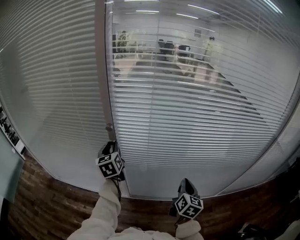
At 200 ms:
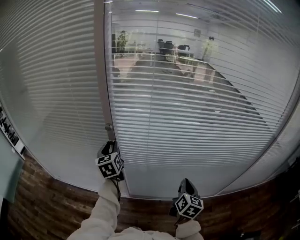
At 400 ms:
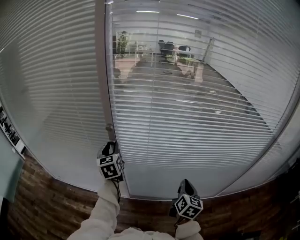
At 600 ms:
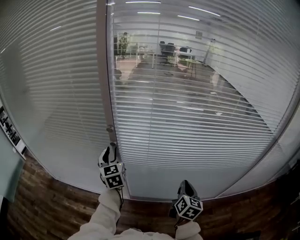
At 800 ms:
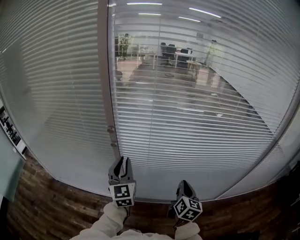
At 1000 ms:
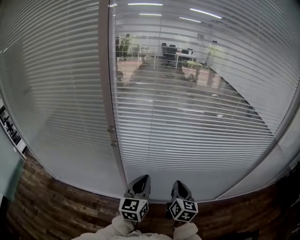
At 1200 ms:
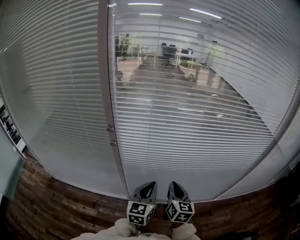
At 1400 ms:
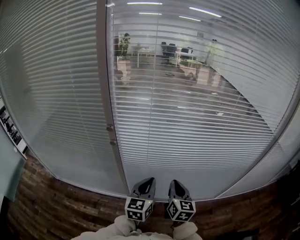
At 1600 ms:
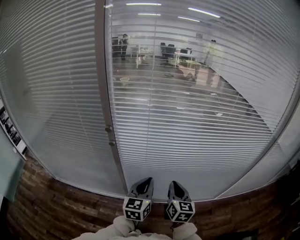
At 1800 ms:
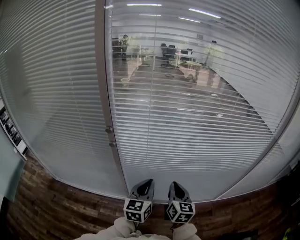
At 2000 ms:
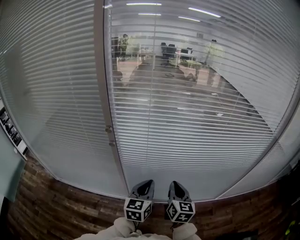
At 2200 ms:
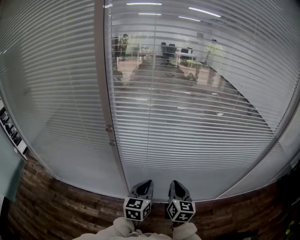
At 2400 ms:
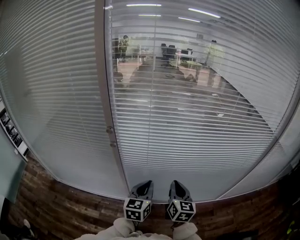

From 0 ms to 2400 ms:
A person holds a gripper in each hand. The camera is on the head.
From 0 ms to 1200 ms: The right gripper heads to the left, covering approximately 5 cm. The left gripper travels to the right and backward by about 25 cm, rotates approximately 30 degrees, and closes its fingers.
From 1200 ms to 2400 ms: The grippers make only small movements.

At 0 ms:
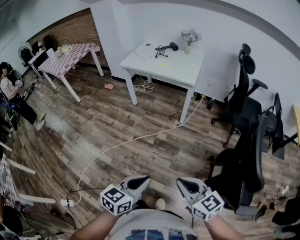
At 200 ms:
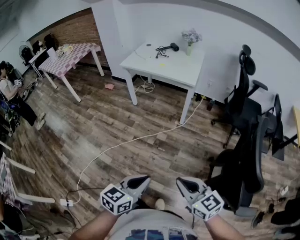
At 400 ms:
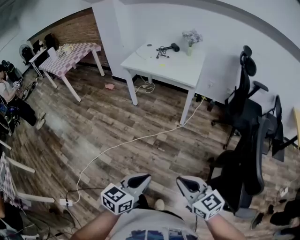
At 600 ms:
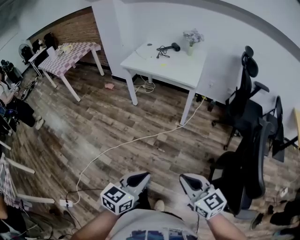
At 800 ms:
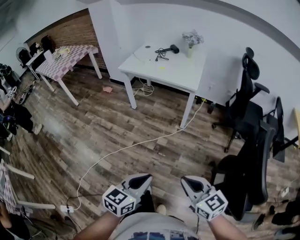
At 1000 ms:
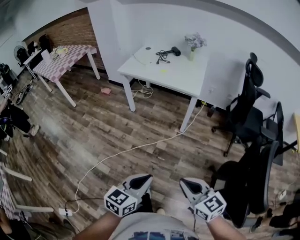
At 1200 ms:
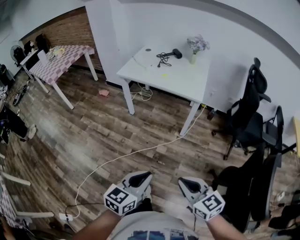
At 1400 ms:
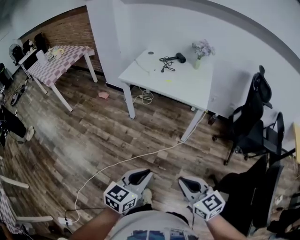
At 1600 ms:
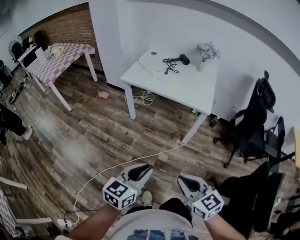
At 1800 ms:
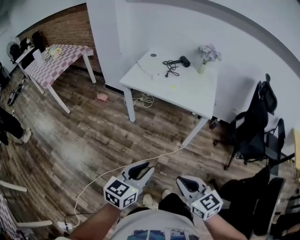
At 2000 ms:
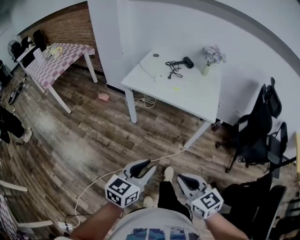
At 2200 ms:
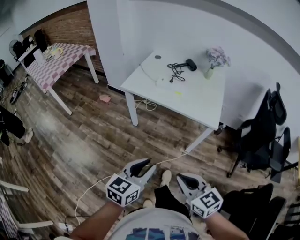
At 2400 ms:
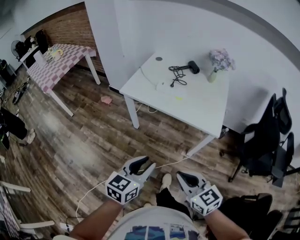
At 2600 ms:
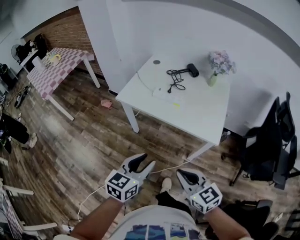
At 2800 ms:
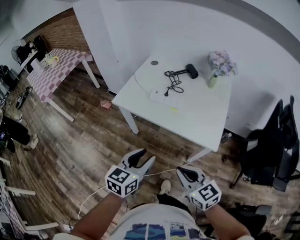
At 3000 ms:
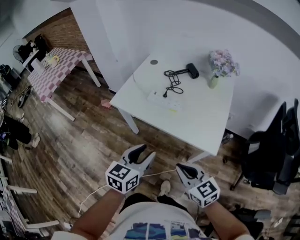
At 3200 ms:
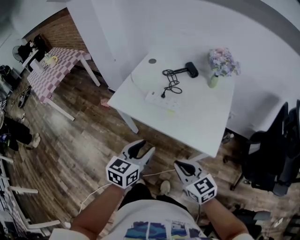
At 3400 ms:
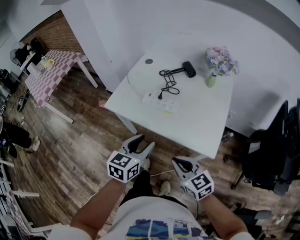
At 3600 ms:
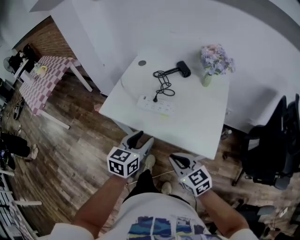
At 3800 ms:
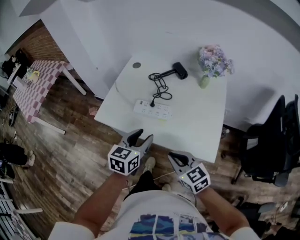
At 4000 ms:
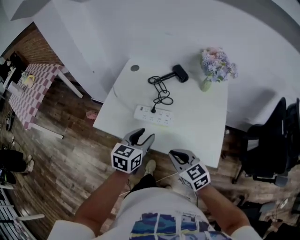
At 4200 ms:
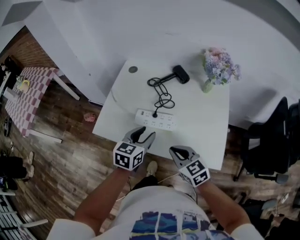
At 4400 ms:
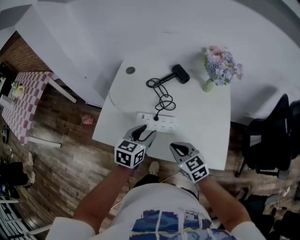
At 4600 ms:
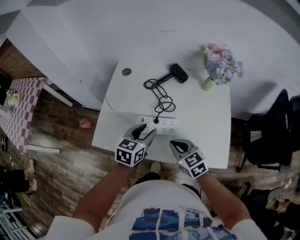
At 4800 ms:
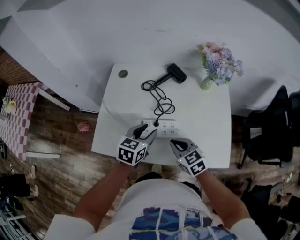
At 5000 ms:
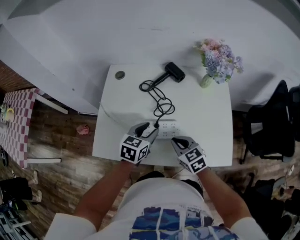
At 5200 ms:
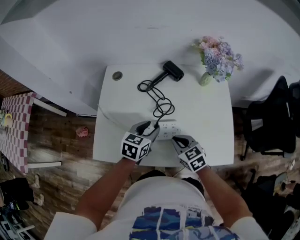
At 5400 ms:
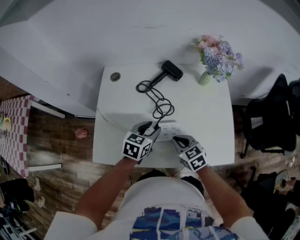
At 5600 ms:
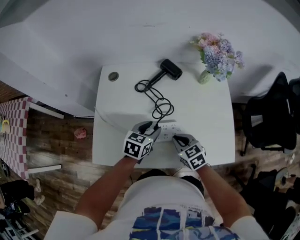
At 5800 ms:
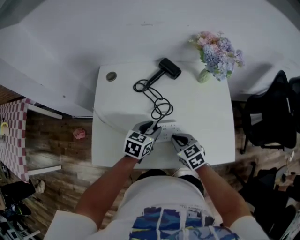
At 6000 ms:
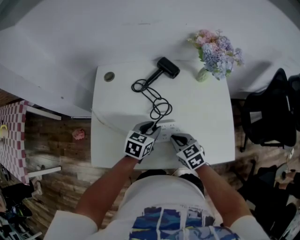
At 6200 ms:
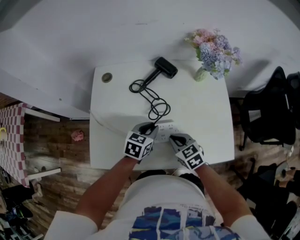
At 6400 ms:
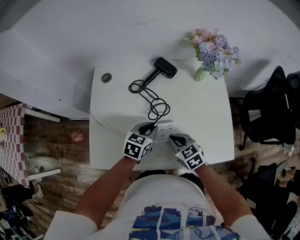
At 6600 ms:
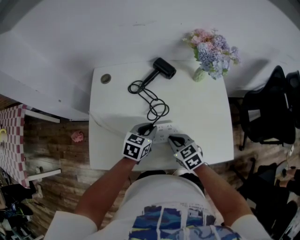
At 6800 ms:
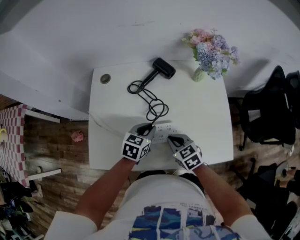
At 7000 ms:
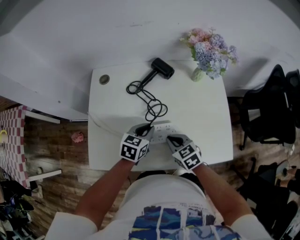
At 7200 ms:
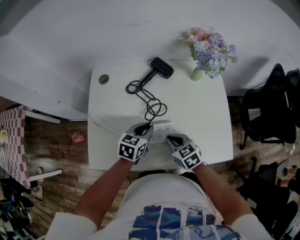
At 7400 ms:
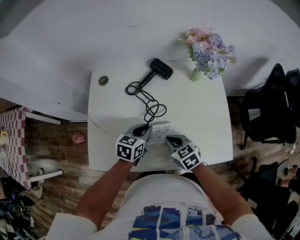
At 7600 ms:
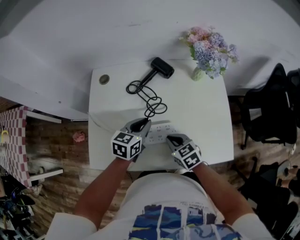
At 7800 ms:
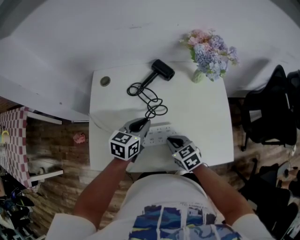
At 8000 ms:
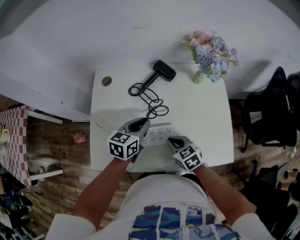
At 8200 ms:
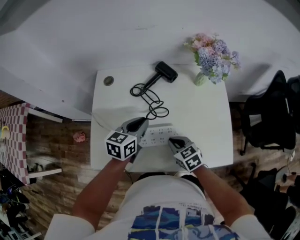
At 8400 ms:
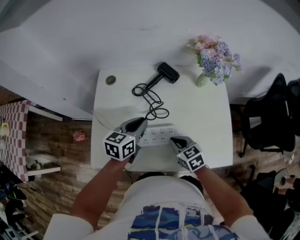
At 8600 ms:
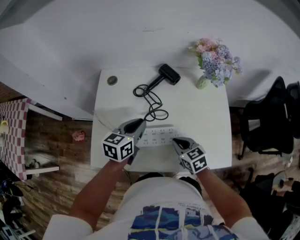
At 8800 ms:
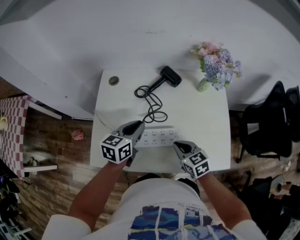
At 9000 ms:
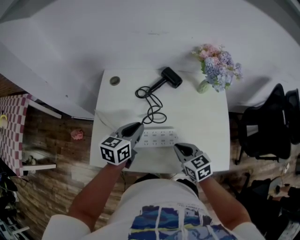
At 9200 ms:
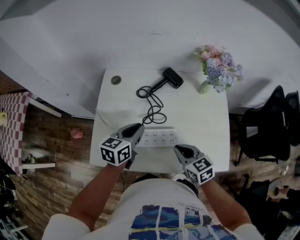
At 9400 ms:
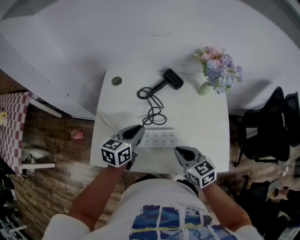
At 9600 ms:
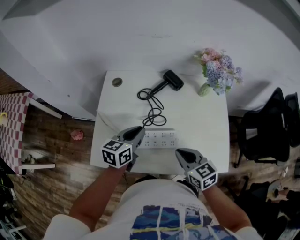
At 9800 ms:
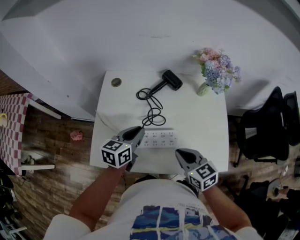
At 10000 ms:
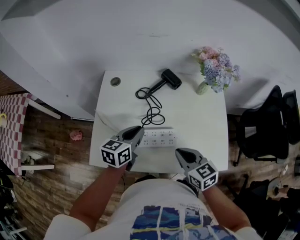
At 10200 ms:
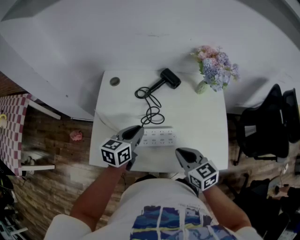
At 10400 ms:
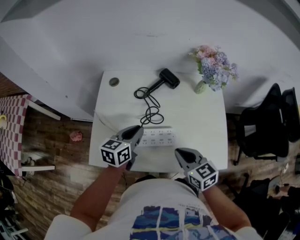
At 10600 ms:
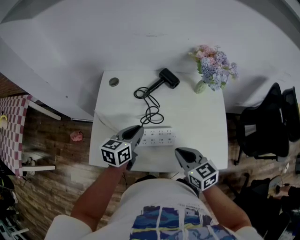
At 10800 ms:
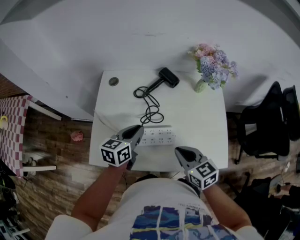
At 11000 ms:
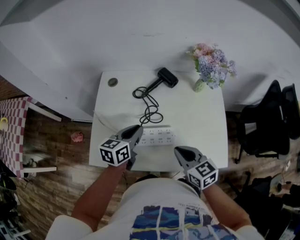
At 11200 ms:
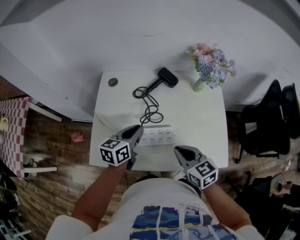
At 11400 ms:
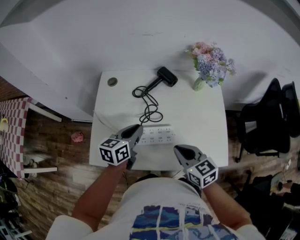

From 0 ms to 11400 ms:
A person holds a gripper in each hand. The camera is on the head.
From 0 ms to 1400 ms: The left gripper travels forward by roughly 25 cm. The right gripper shifts some 25 cm forward and to the left.
From 1400 ms to 2800 ms: The two grippers travel together, forward, approximately 40 cm. The left gripper opens its fingers.
From 2800 ms to 4200 ms: The two grippers go roughly 30 cm forward.
From 4200 ms to 5600 ms: Both grippers travel together forward and downward, approximately 15 cm. The left gripper swivels some 20 degrees.
From 5600 ms to 7200 ms: The left gripper closes.
From 7200 ms to 8600 ms: The left gripper goes some 10 cm upward and to the left.
From 8600 ms to 10000 ms: The right gripper moves upward, some 10 cm.
From 10000 ms to 11400 ms: Both grippers stay about where they are.

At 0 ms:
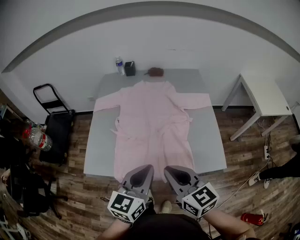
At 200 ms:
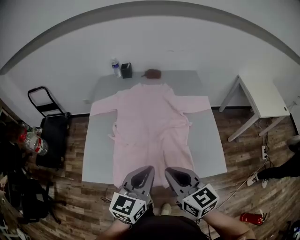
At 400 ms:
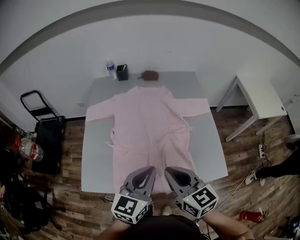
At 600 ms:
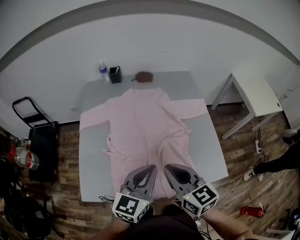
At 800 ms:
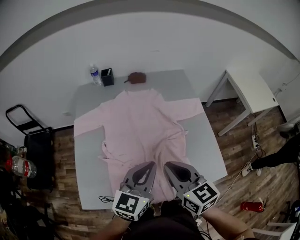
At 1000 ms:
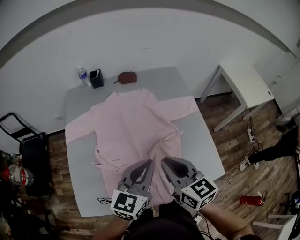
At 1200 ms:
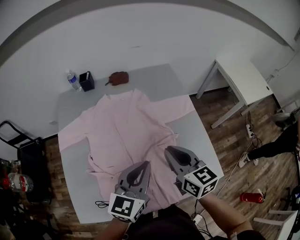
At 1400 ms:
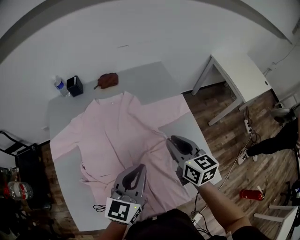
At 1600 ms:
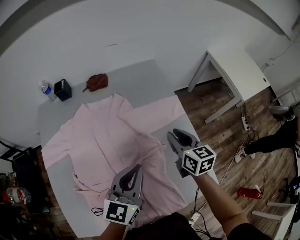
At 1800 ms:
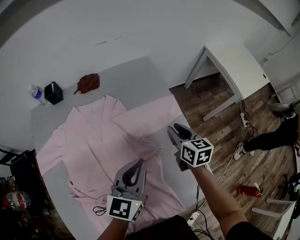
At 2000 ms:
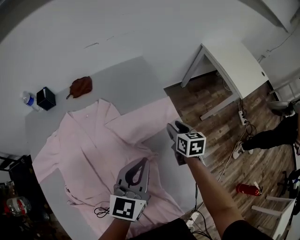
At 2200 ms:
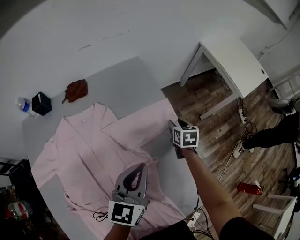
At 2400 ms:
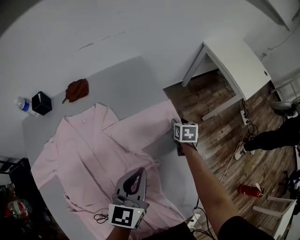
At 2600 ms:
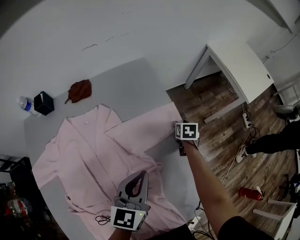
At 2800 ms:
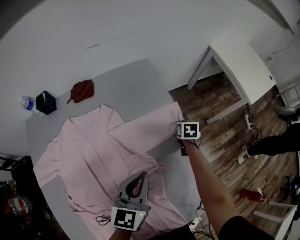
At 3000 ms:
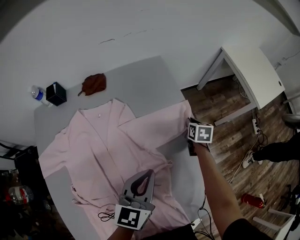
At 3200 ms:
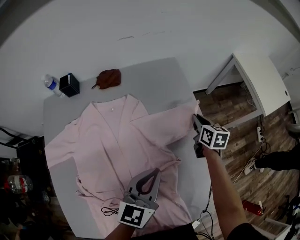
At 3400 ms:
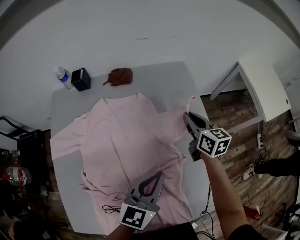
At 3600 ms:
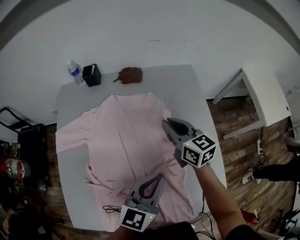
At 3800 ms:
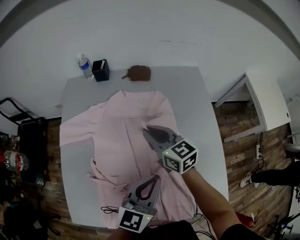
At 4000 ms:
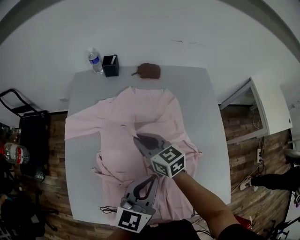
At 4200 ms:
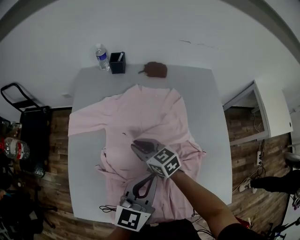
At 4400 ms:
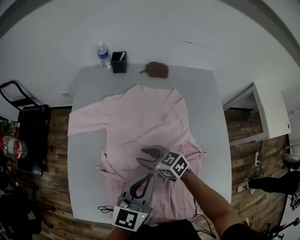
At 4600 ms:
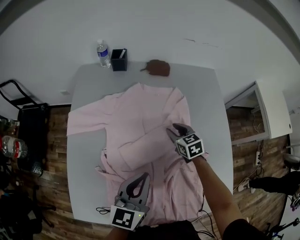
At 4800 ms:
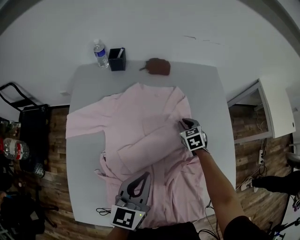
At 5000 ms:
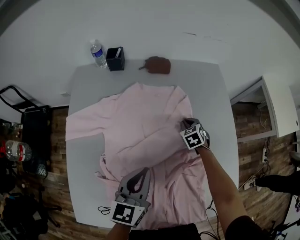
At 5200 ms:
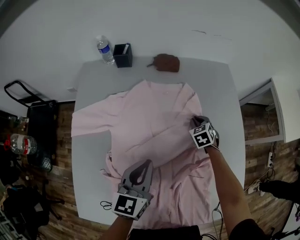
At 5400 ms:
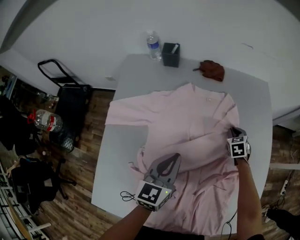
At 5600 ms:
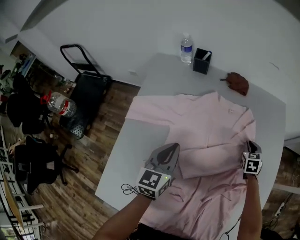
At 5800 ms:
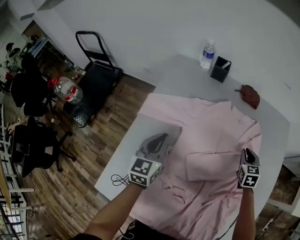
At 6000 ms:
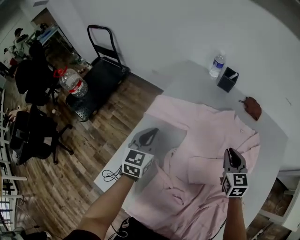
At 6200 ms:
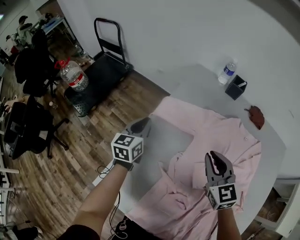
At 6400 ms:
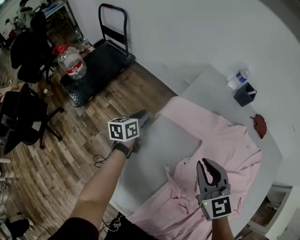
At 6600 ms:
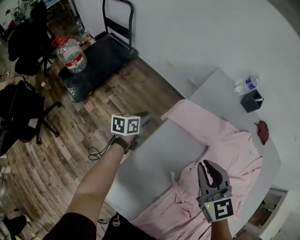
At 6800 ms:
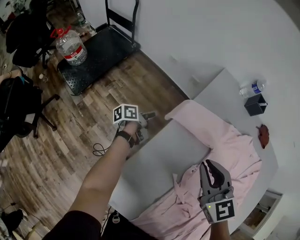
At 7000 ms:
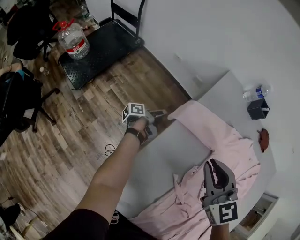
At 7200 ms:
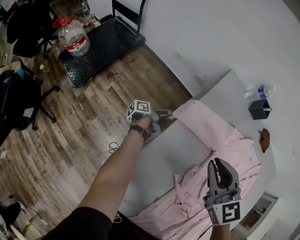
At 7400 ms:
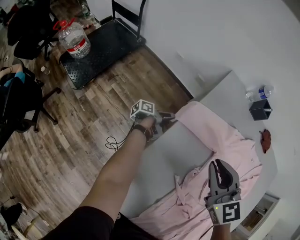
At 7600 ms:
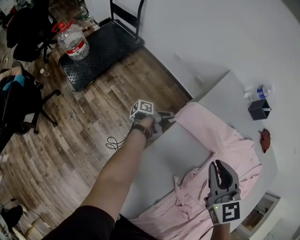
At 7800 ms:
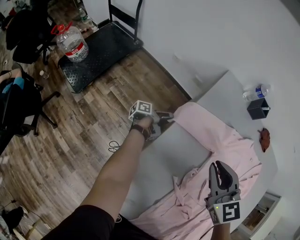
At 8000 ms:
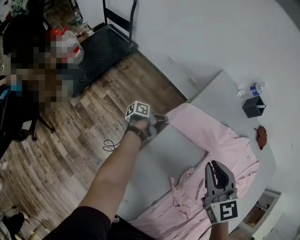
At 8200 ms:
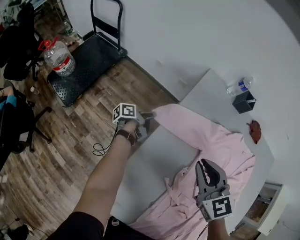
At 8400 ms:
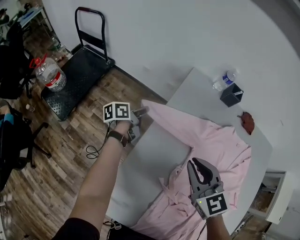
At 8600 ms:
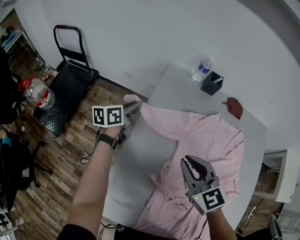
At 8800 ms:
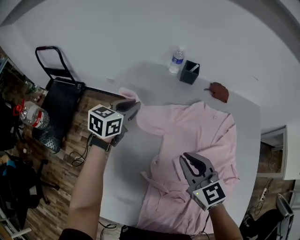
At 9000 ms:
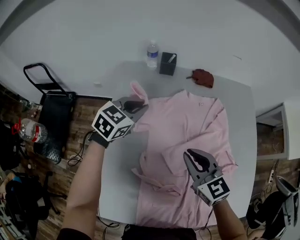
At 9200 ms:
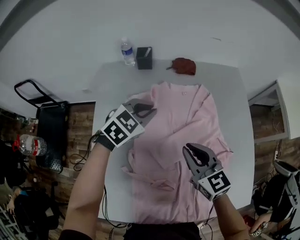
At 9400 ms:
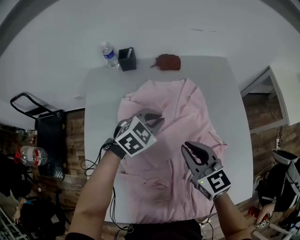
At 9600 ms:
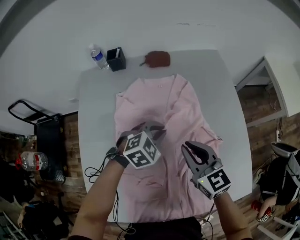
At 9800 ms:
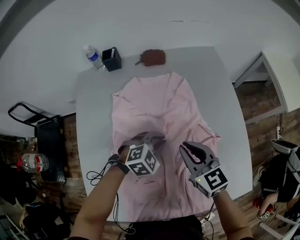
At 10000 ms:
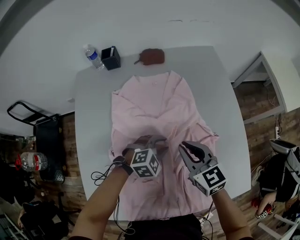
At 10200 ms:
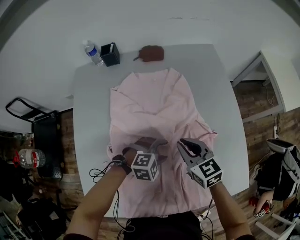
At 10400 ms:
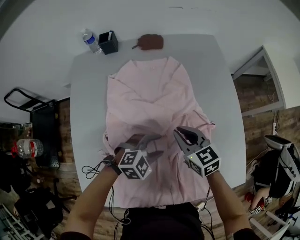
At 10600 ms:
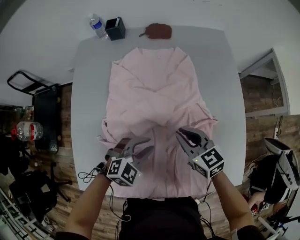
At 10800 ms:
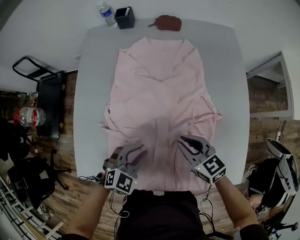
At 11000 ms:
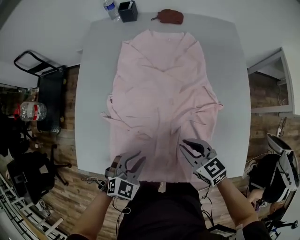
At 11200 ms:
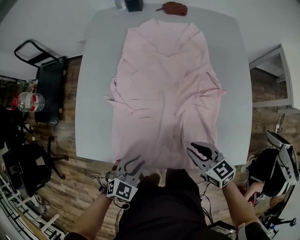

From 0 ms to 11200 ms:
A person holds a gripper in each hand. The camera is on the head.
From 0 ms to 1600 ms: The right gripper is displaced forward and to the right by about 40 cm, and changes its angle by roughly 40 degrees. The left gripper travels forward by about 30 cm.
From 1600 ms to 3200 ms: The right gripper shifts about 20 cm forward and downward; the left gripper travels forward and downward by about 10 cm.
From 3200 ms to 4800 ms: The right gripper twists some 40 degrees counterclockwise, seen from behind, while the left gripper moves approximately 20 cm.
From 4800 ms to 6400 ms: The pair of grippers is taken roughly 40 cm. The right gripper rotates some 50 degrees; the left gripper turns by some 50 degrees.
From 6400 ms to 8000 ms: The right gripper moves approximately 5 cm; the left gripper moves downward and to the right, approximately 15 cm, twists approximately 50 degrees counterclockwise, seen from behind, and opens, then closes again.
From 8000 ms to 9600 ms: The left gripper moves roughly 50 cm, and twists some 130 degrees clockwise, seen from behind. Meanwhile the right gripper moves about 35 cm, and swivels about 40 degrees.
From 9600 ms to 11200 ms: The left gripper ends up roughly 40 cm from where it was, swivels approximately 30 degrees, and opens and closes again; the right gripper changes place by approximately 25 cm, and changes its angle by some 30 degrees.
